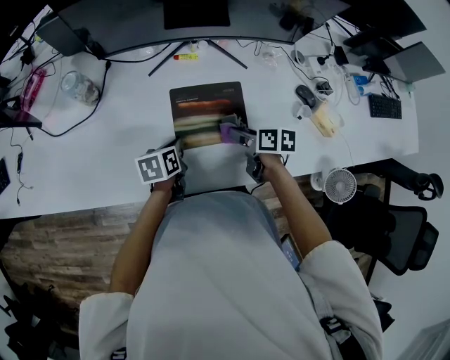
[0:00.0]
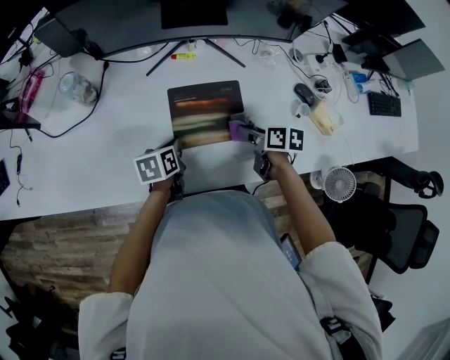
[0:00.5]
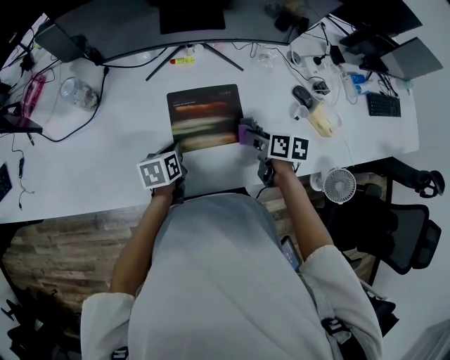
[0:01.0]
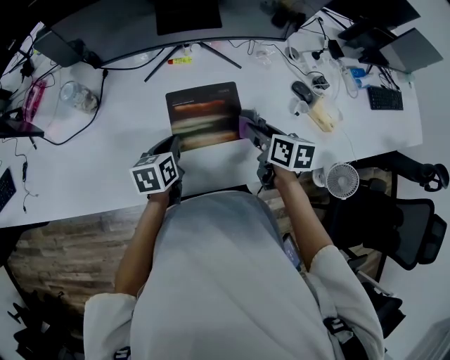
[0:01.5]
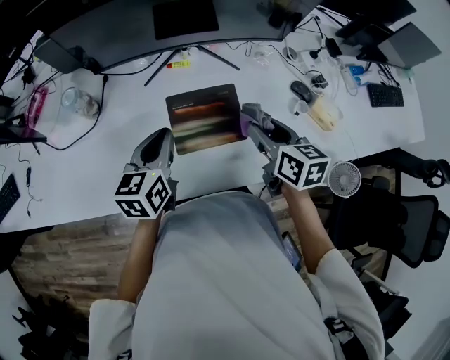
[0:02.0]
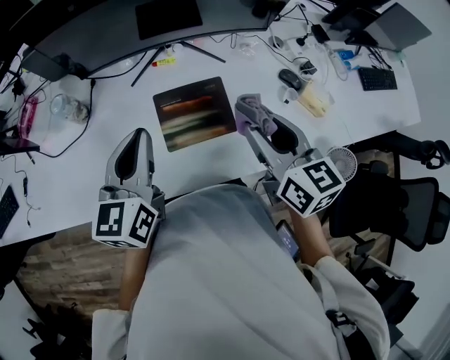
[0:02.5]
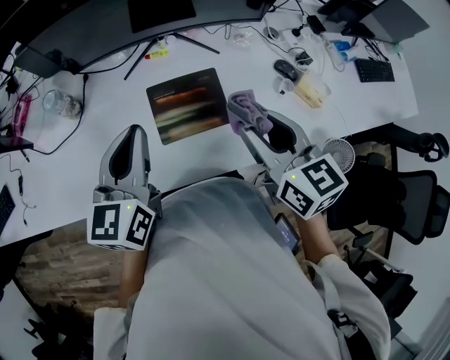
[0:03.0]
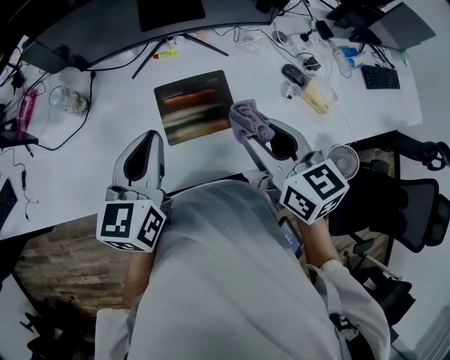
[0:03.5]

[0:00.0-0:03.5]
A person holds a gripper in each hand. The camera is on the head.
0:00.0 to 0:02.0: The grippers both shift upward by about 15 cm. The left gripper changes its angle by roughly 30 degrees. Meanwhile the right gripper swivels roughly 30 degrees.
0:02.0 to 0:03.5: The right gripper moves upward and backward, about 10 cm; the left gripper shifts about 10 cm upward.

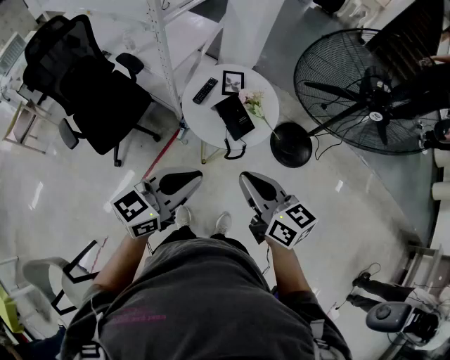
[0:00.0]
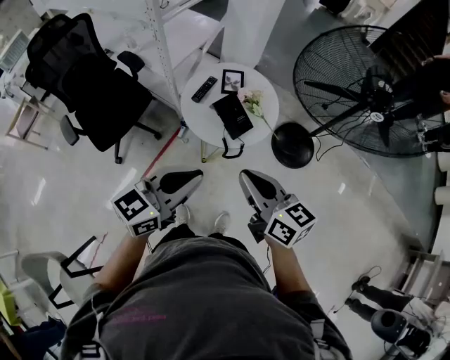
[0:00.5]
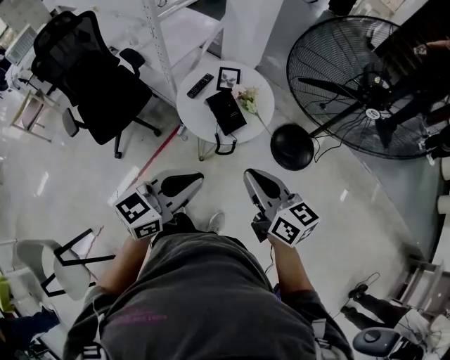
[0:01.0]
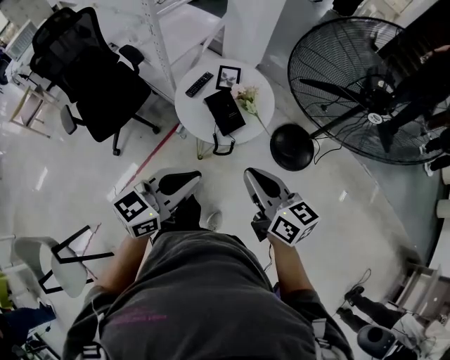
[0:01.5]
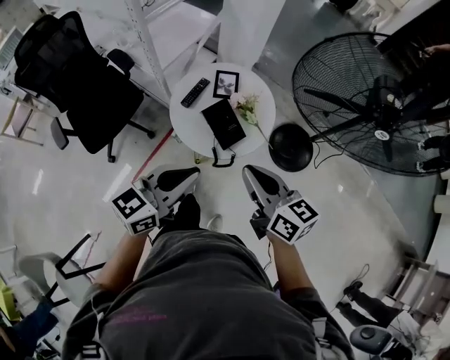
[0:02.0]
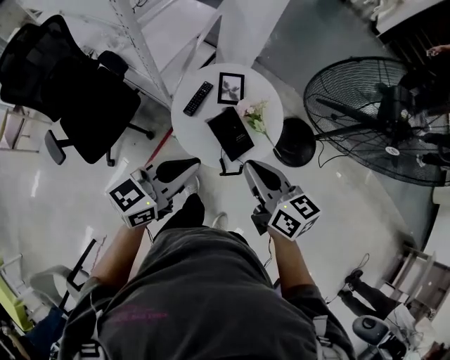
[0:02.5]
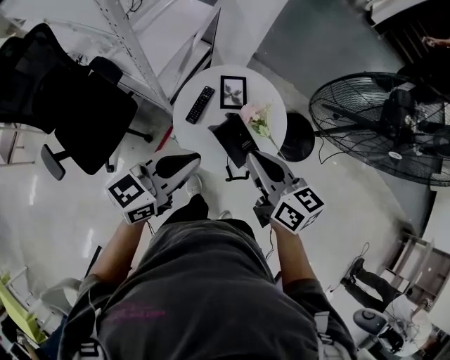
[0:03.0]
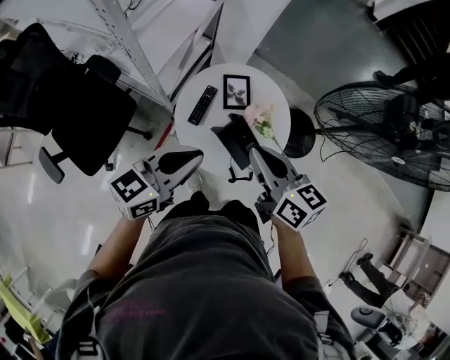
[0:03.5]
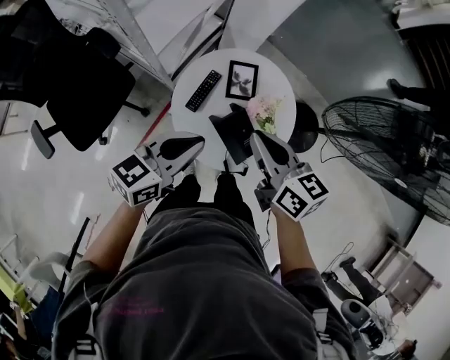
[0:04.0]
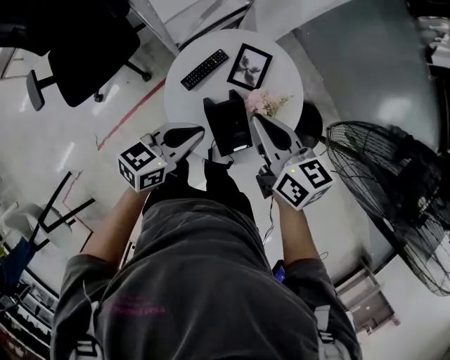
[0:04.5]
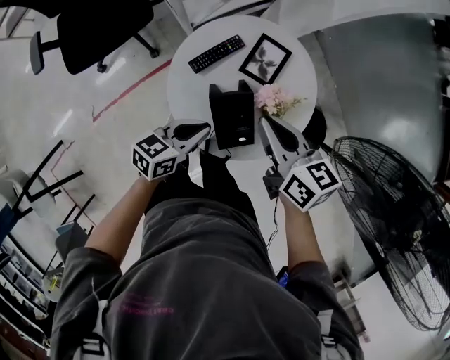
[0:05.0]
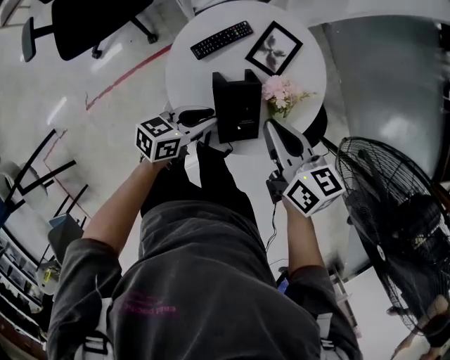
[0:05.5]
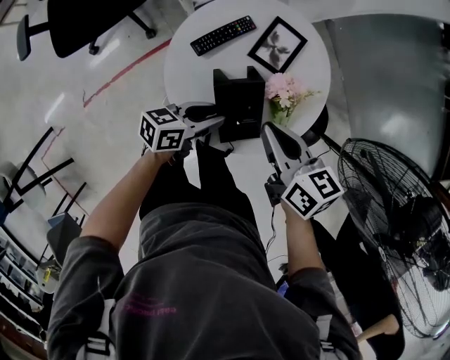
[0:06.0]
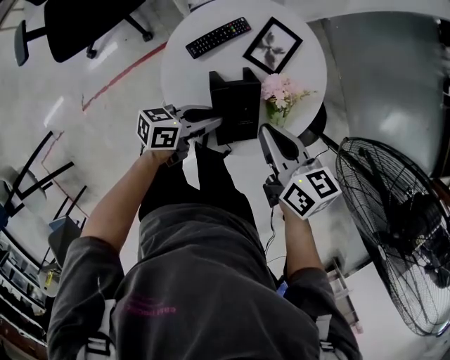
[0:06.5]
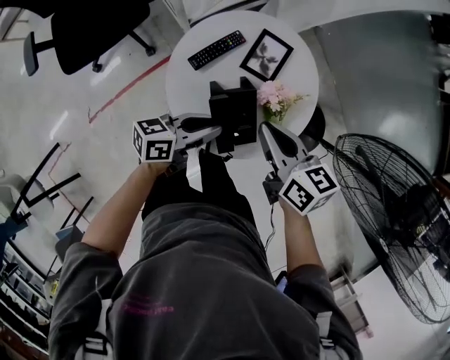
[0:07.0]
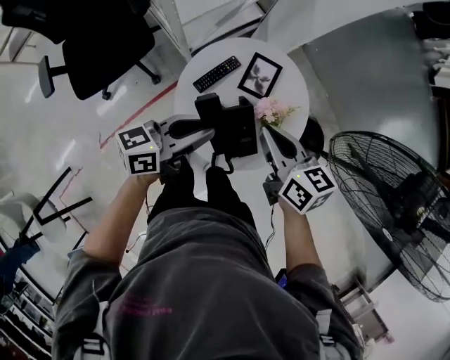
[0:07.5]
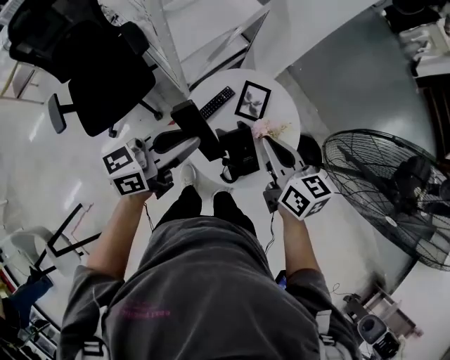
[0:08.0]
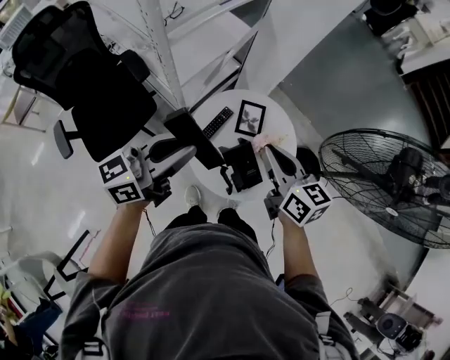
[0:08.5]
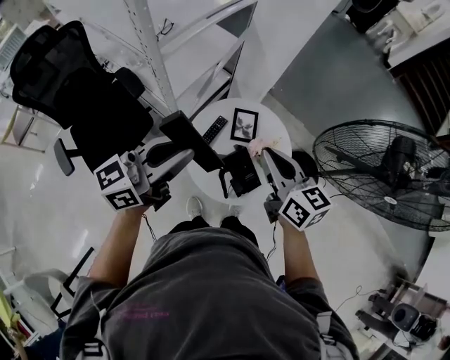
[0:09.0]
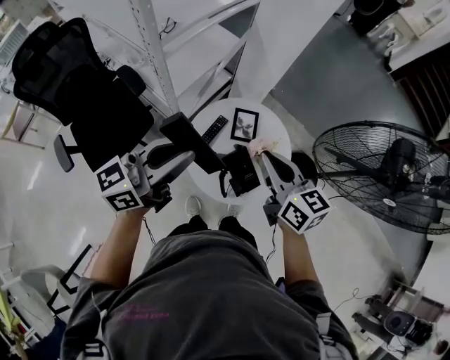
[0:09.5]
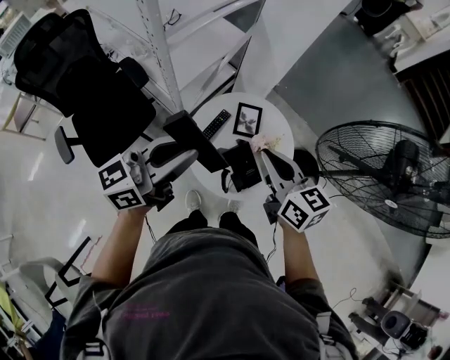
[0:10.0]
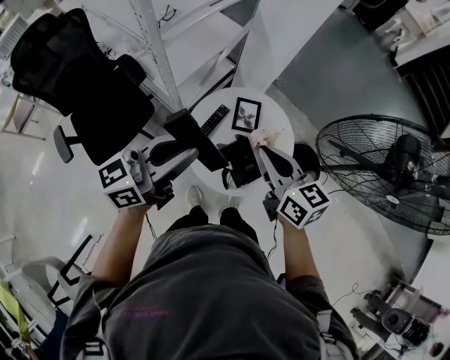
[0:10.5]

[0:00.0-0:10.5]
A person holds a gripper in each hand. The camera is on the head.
0:00.0 to 0:02.0: The two grippers go about 10 cm forward and to the right.
0:02.0 to 0:04.0: The right gripper travels forward and to the left by about 25 cm. The left gripper heads forward, to the left and downward, covering roughly 25 cm.
0:04.0 to 0:06.5: The left gripper shifts some 25 cm downward, and changes its angle by approximately 40 degrees. The right gripper moves downward, about 15 cm, and changes its angle by some 30 degrees.
0:06.5 to 0:08.5: The left gripper heads upward, covering approximately 40 cm, and turns by some 40 degrees. The right gripper heads upward, covering roughly 20 cm, and rotates some 30 degrees.
0:08.5 to 0:10.5: The grippers move only a little.

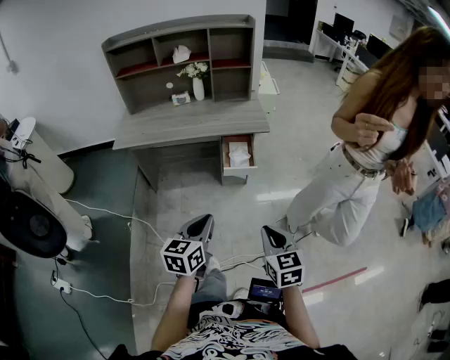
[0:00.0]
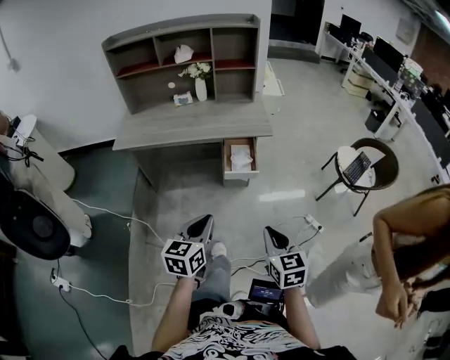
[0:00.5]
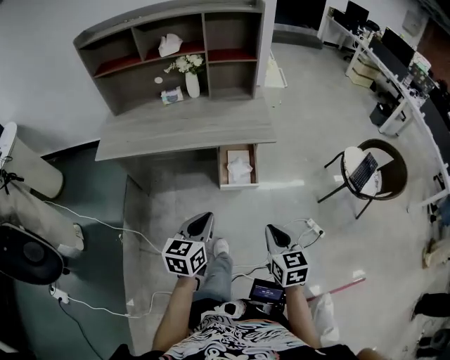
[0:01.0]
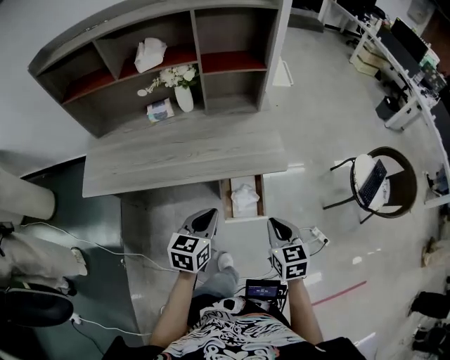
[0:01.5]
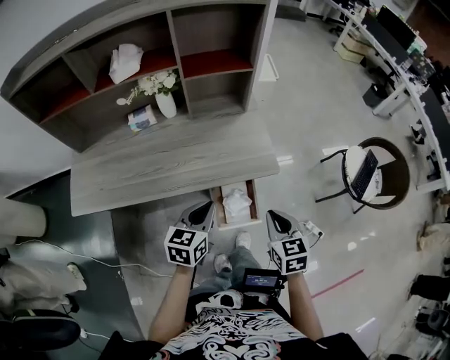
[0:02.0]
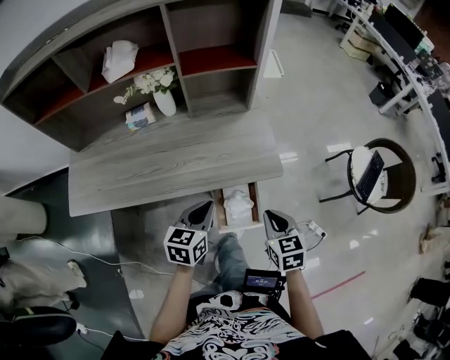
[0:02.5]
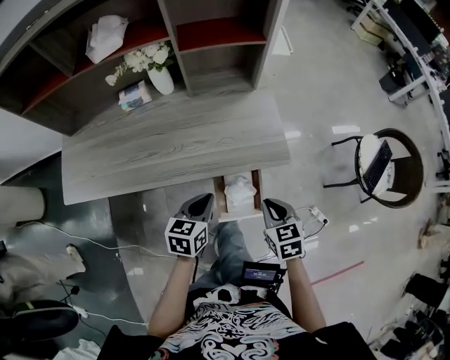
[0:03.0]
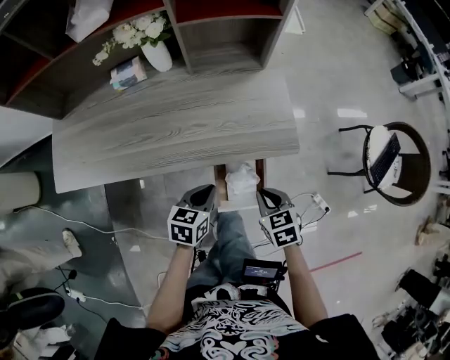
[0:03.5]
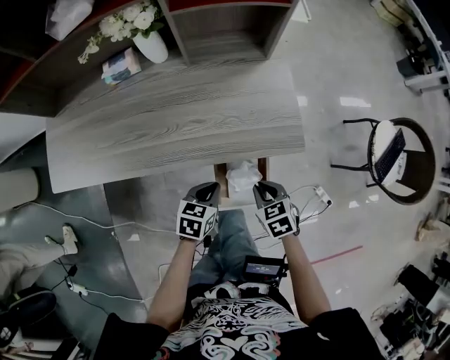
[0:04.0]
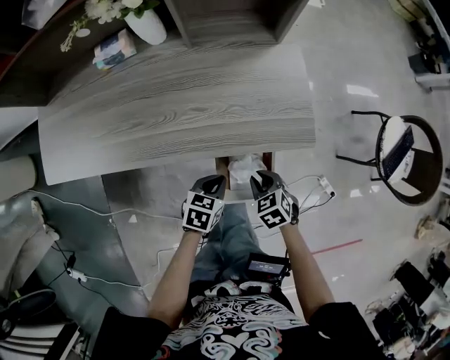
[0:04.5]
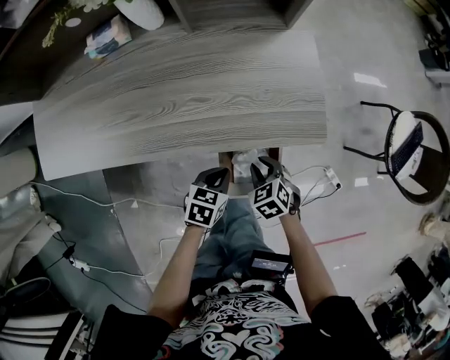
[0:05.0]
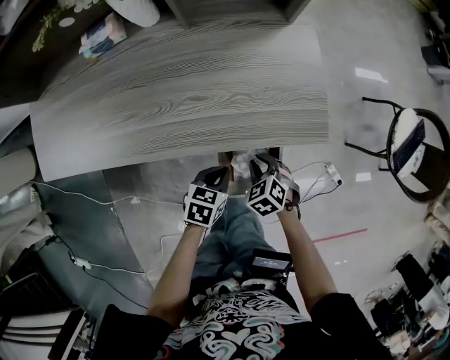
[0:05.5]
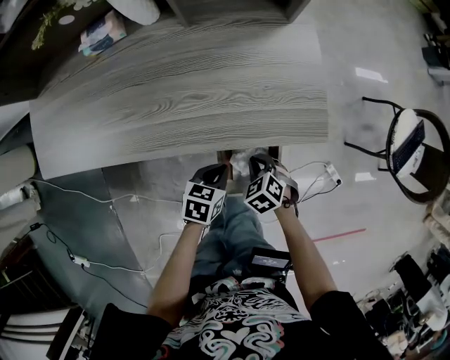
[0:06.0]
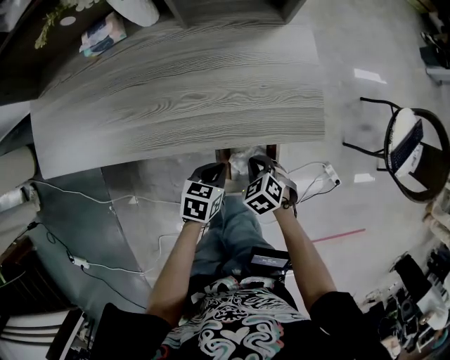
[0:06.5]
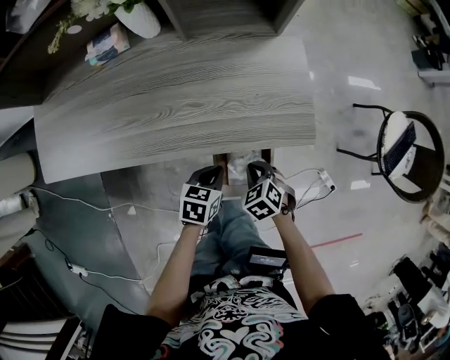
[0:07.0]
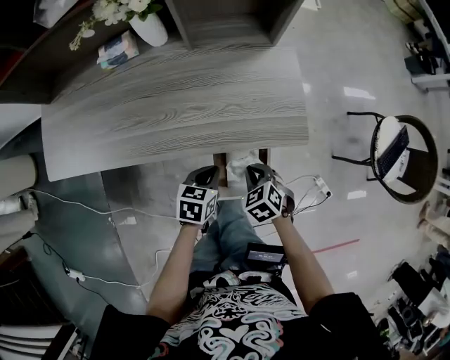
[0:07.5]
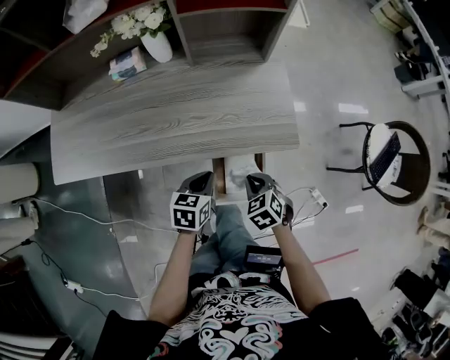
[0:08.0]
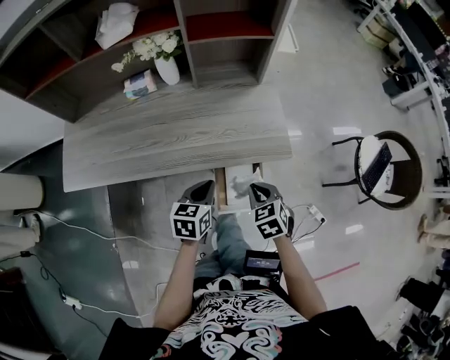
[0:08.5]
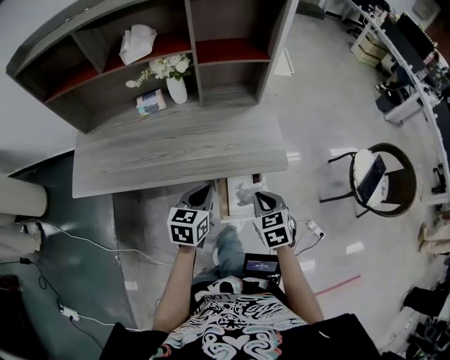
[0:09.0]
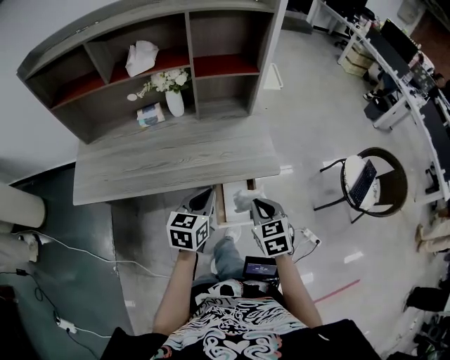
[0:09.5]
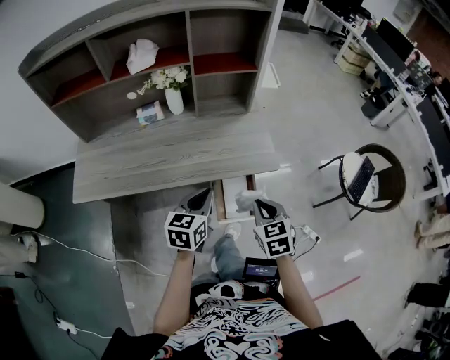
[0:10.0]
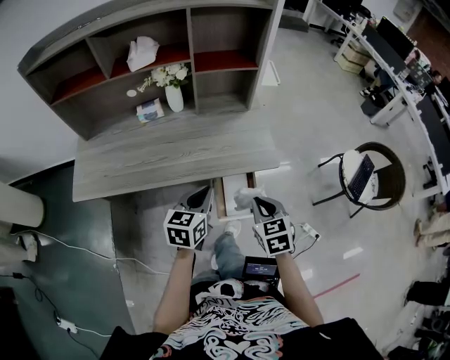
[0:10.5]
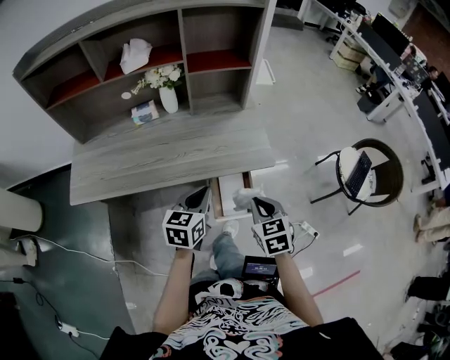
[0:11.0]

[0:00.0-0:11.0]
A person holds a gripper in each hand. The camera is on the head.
0:00.0 to 0:02.0: The pair of grippers is taken forward, about 50 cm.
0:02.0 to 0:03.5: Both grippers travel together downward, some 15 cm. The right gripper turns by some 20 degrees.
0:03.5 to 0:05.5: The two grippers go approximately 15 cm downward. The right gripper swivels about 30 degrees.
0:05.5 to 0:07.5: Both grippers move upward, roughly 5 cm.
0:07.5 to 0:09.0: The two grippers go about 20 cm upward. The left gripper rotates roughly 20 degrees; the right gripper changes its angle by some 30 degrees.
0:09.0 to 0:11.0: The left gripper moves some 5 cm; the right gripper goes about 5 cm backward.

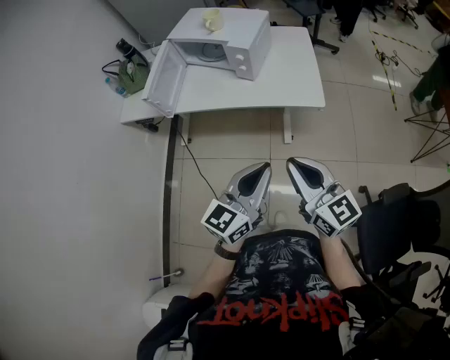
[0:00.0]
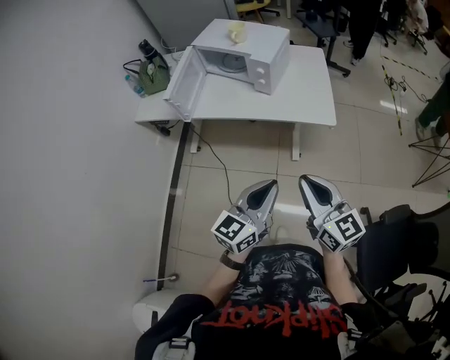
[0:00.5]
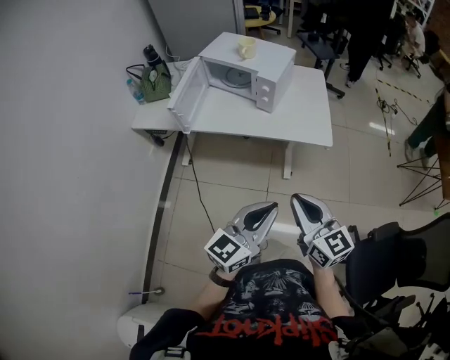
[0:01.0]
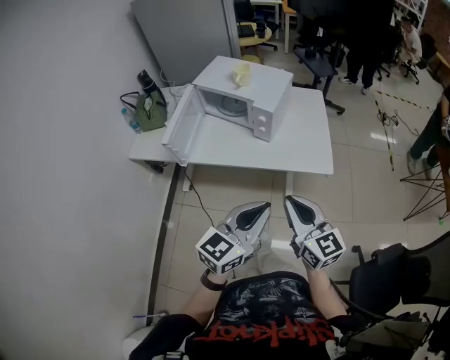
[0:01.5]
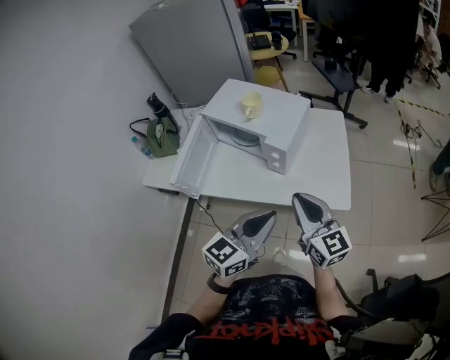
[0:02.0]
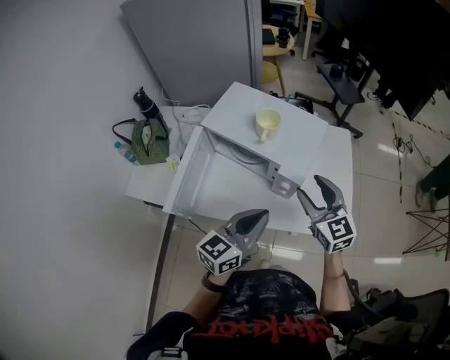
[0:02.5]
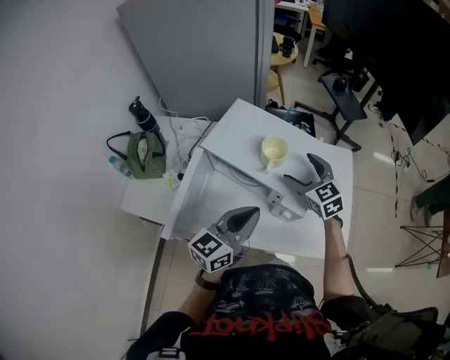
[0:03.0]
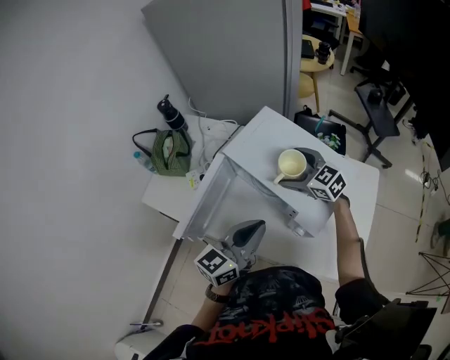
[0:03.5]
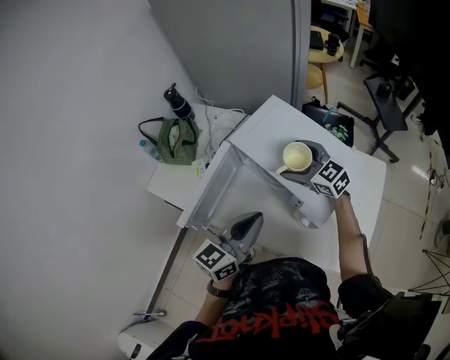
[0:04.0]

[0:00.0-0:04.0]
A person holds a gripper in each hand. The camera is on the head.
0:00.0 to 0:02.0: The two grippers go some 20 cm forward.
0:02.0 to 0:04.0: The right gripper moves approximately 50 cm, turns by about 50 degrees, and opens; the left gripper ends up about 30 cm from where it was, and swivels approximately 20 degrees.
